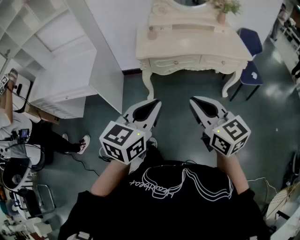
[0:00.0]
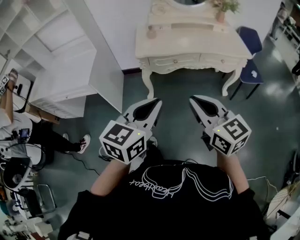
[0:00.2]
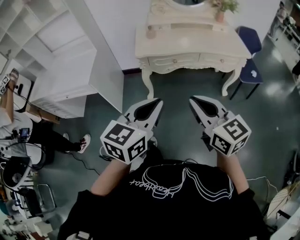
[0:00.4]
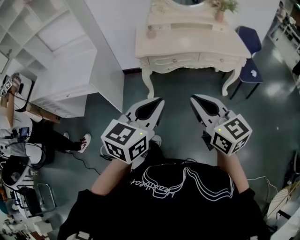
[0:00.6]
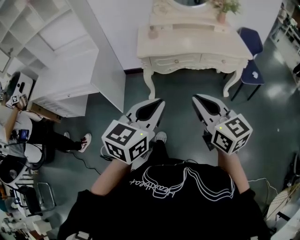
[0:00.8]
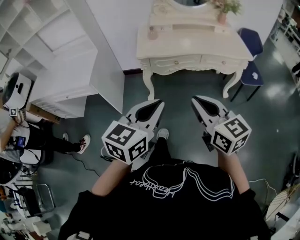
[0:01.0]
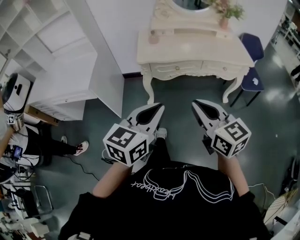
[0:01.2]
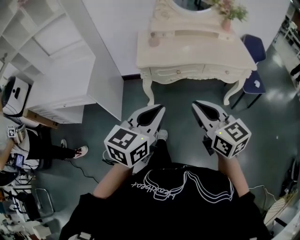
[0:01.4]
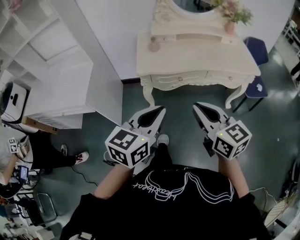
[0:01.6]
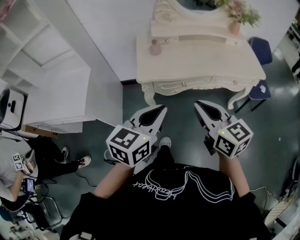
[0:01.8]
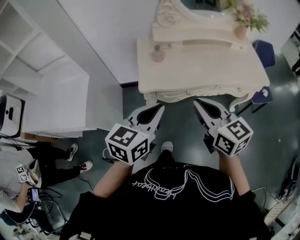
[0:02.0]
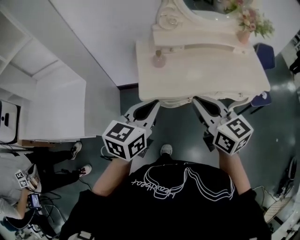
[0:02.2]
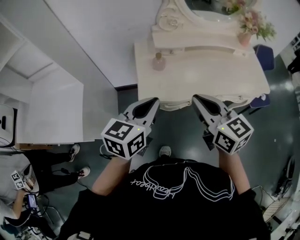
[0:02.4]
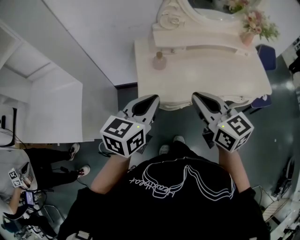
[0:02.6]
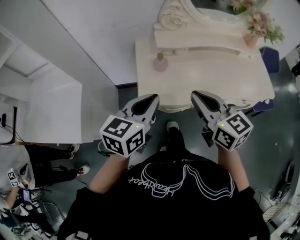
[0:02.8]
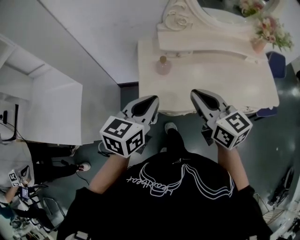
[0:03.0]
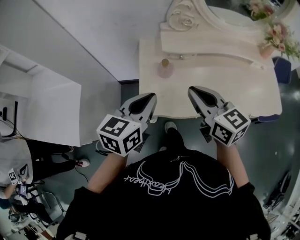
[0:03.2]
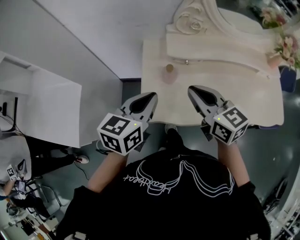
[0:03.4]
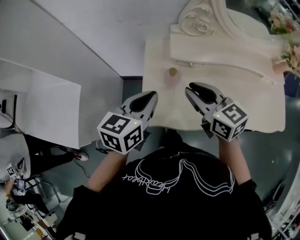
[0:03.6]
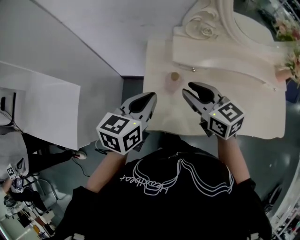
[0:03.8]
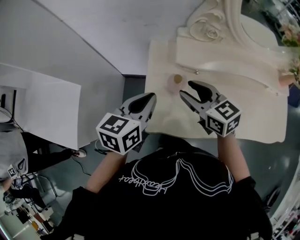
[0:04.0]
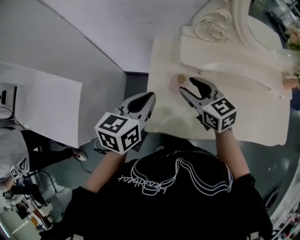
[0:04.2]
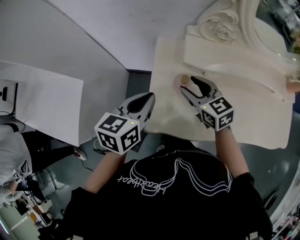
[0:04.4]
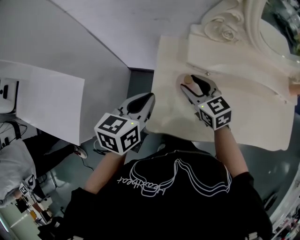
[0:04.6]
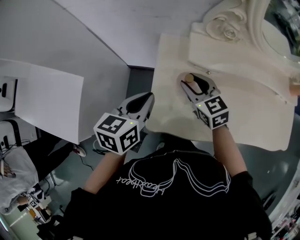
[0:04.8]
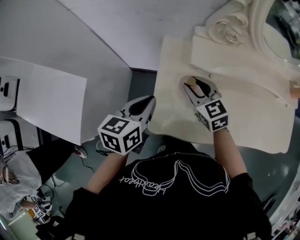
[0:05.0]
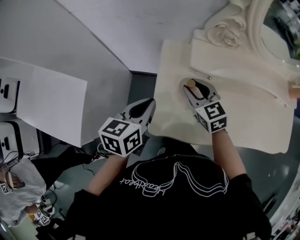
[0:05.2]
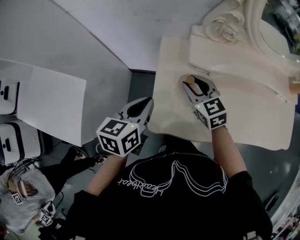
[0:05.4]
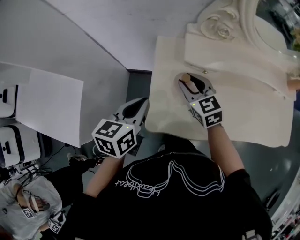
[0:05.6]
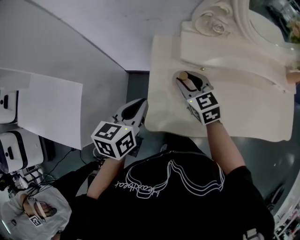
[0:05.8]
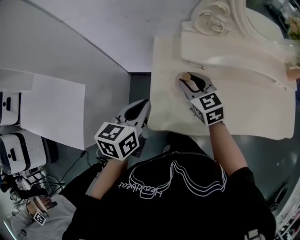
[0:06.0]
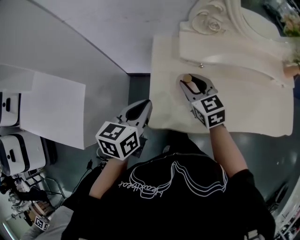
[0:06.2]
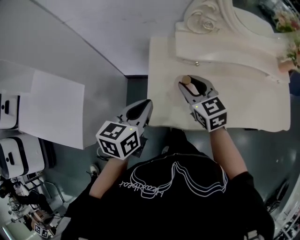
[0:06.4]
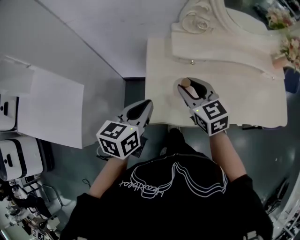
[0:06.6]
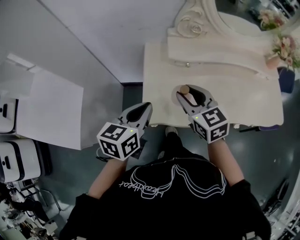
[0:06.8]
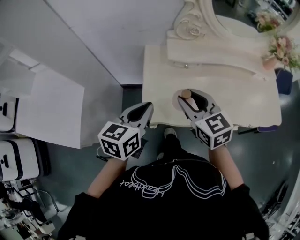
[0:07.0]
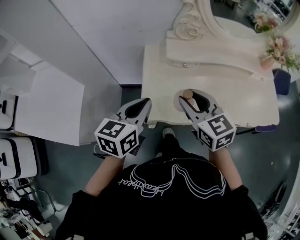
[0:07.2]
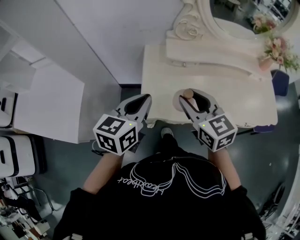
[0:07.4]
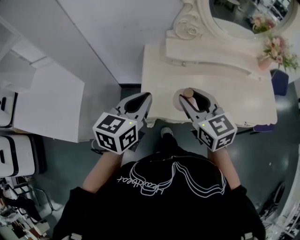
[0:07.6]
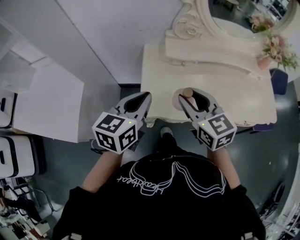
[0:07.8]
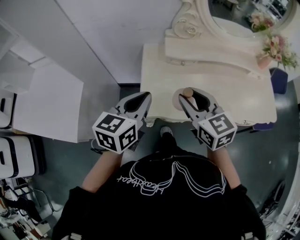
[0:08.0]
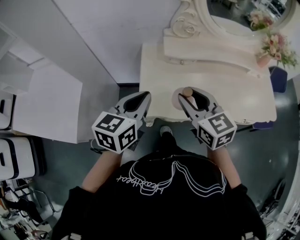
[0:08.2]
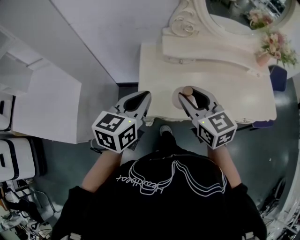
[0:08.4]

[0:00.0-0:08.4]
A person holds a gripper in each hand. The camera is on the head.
0:00.0 to 0:01.4: Both grippers move forward, some 10 cm.
0:01.4 to 0:02.8: Both grippers move forward, some 35 cm.
0:02.8 to 0:04.2: Both grippers move forward and downward, roughly 25 cm. The right gripper swivels approximately 20 degrees, and opens its fingers.
0:04.2 to 0:05.6: The right gripper changes place by approximately 5 cm.
0:05.6 to 0:07.0: The left gripper goes roughly 10 cm backward and upward, while the right gripper travels backward and upward by approximately 20 cm.
0:07.0 to 0:08.4: The grippers make only small movements.

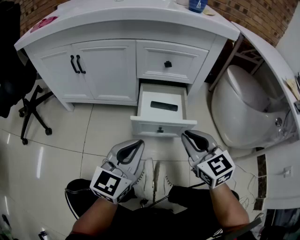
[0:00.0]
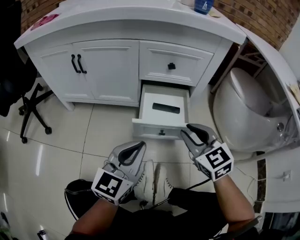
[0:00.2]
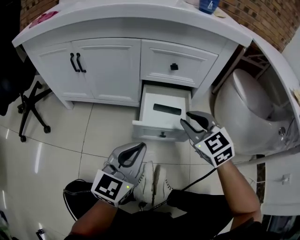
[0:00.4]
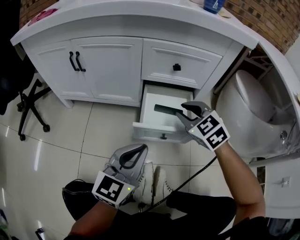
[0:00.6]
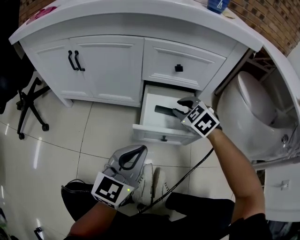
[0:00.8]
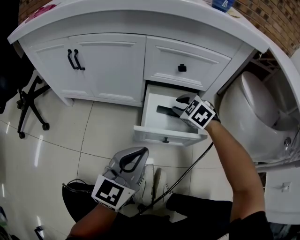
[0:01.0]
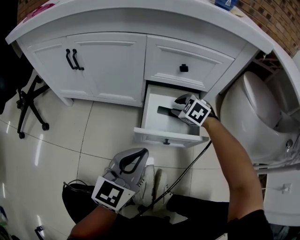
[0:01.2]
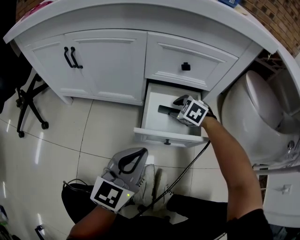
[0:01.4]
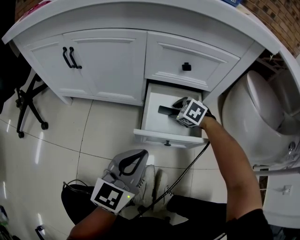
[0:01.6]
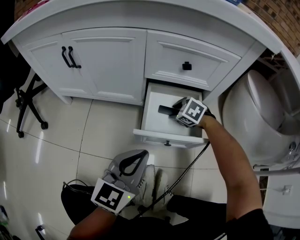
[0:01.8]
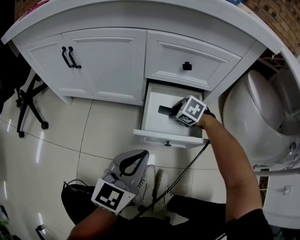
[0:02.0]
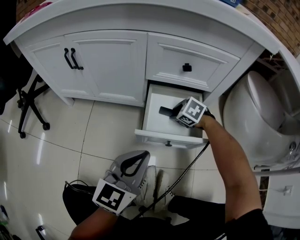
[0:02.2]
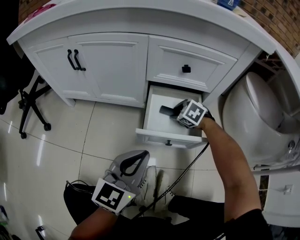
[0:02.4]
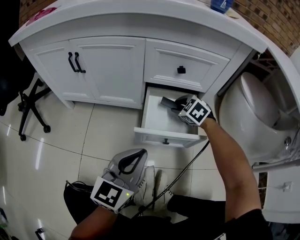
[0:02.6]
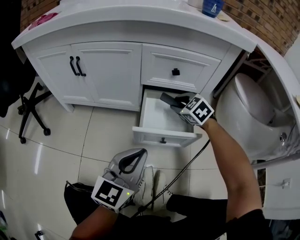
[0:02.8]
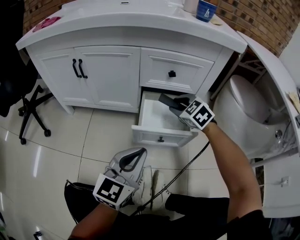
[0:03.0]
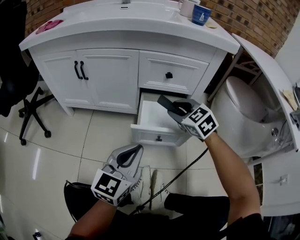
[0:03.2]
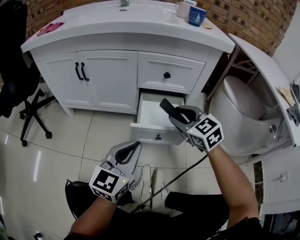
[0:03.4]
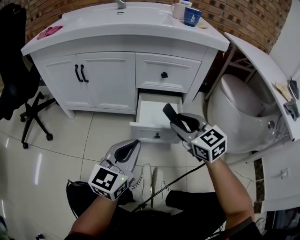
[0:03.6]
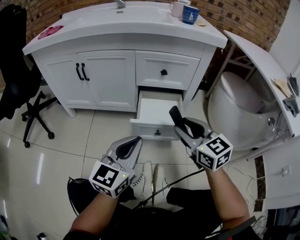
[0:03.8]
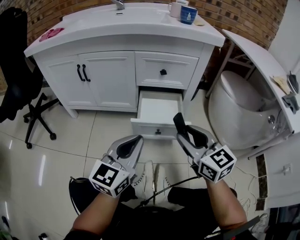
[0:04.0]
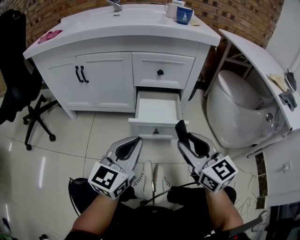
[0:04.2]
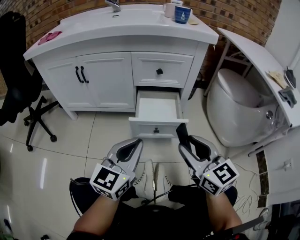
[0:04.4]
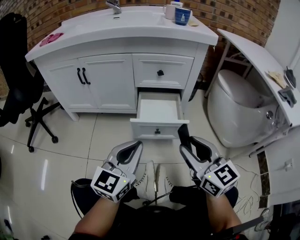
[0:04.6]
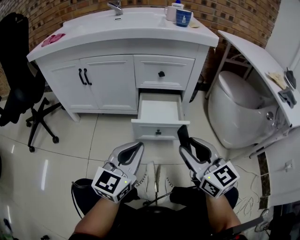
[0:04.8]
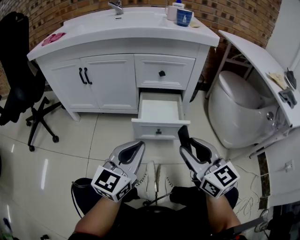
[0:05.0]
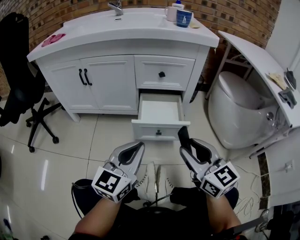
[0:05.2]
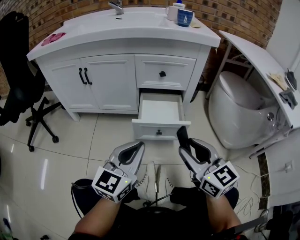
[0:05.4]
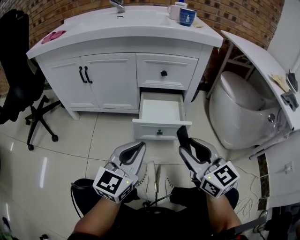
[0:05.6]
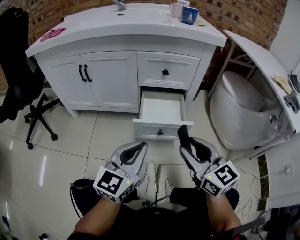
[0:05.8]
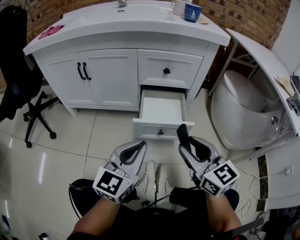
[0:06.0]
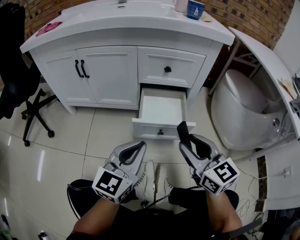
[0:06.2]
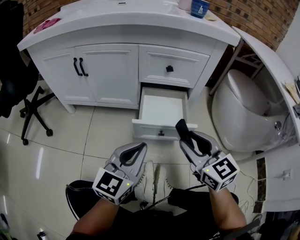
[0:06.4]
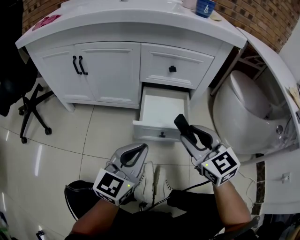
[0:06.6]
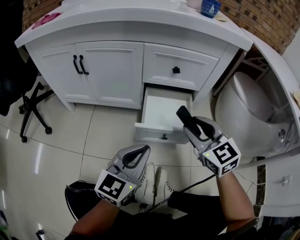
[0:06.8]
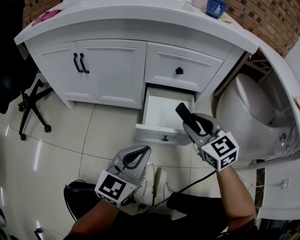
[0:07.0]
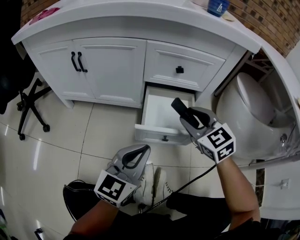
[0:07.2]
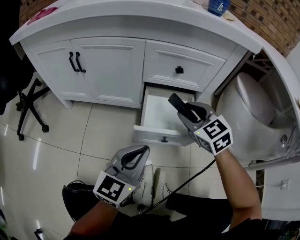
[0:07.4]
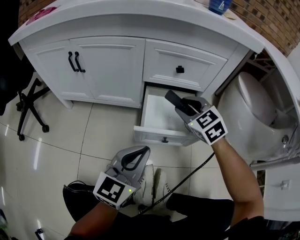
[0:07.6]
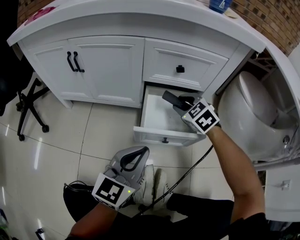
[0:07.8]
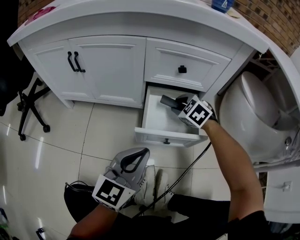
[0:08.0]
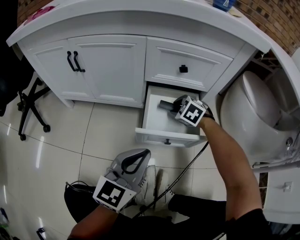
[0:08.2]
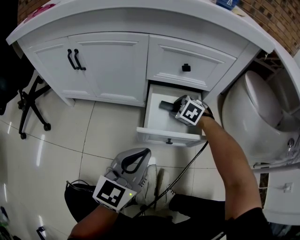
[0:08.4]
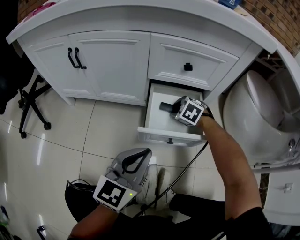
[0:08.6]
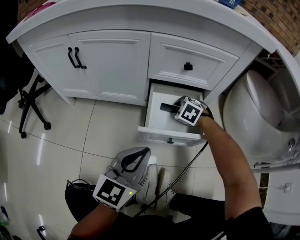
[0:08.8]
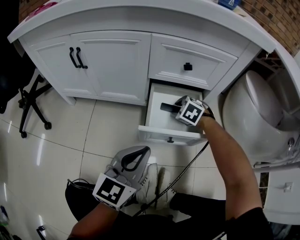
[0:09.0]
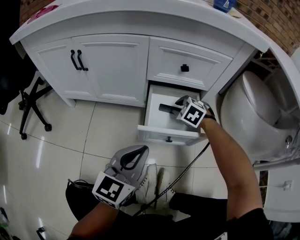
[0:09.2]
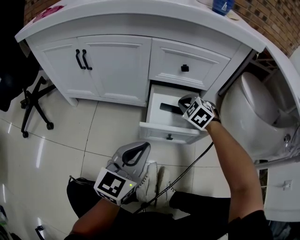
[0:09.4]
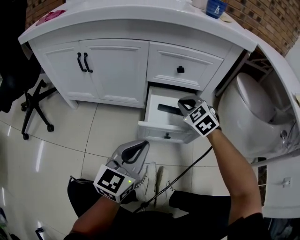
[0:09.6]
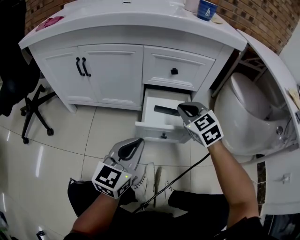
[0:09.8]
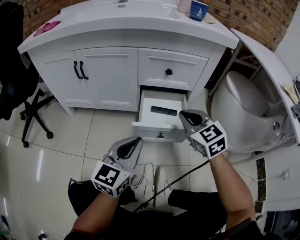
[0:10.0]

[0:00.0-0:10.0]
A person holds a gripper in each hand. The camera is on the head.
0:00.0 to 0:01.4: The left gripper travels forward by roughly 5 cm. The right gripper is displaced forward and downward by about 30 cm, angles its fingers downward, by approximately 40 degrees, and opens its fingers.
0:01.4 to 0:02.8: The right gripper heads upward, covering about 10 cm.
0:02.8 to 0:04.2: The left gripper travels backward by some 5 cm. The right gripper moves backward and upward, about 35 cm, and tilts its fingers some 40 degrees upward.
0:04.2 to 0:05.8: The grippers move only a little.
0:05.8 to 0:07.2: The left gripper moves forward, some 5 cm; the right gripper travels forward by some 20 cm, and changes its angle by some 30 degrees.
0:07.2 to 0:08.6: The right gripper moves downward and forward, some 25 cm, and tilts its fingers roughly 40 degrees downward.
0:08.6 to 0:10.0: The right gripper moves upward and backward, about 25 cm, tips its fingers upward by roughly 40 degrees, and closes.

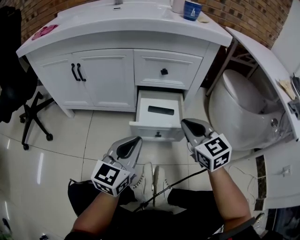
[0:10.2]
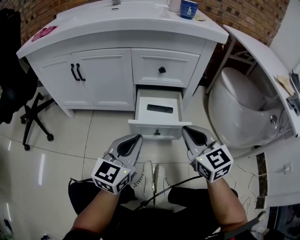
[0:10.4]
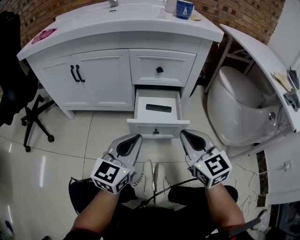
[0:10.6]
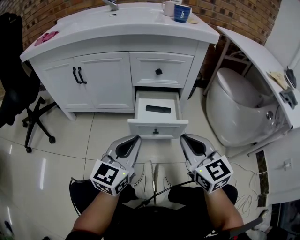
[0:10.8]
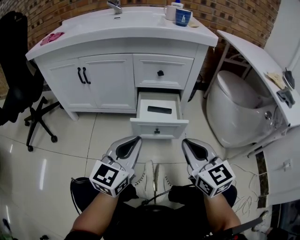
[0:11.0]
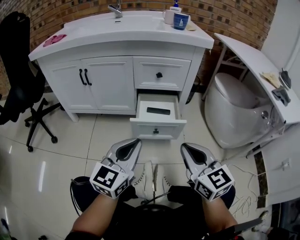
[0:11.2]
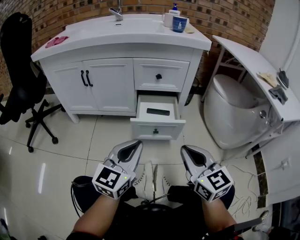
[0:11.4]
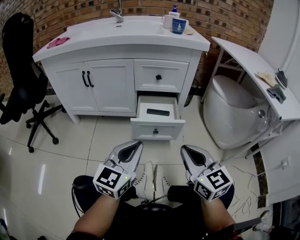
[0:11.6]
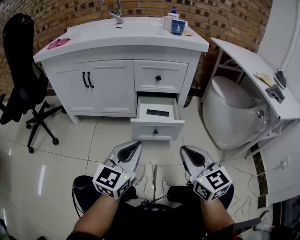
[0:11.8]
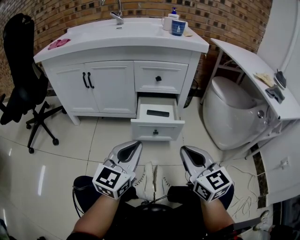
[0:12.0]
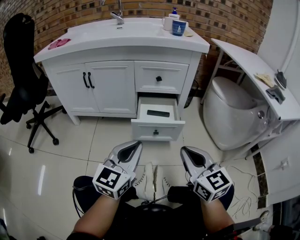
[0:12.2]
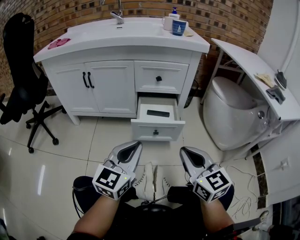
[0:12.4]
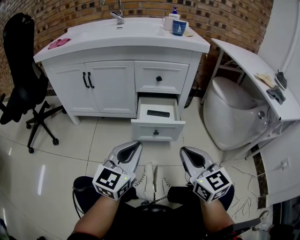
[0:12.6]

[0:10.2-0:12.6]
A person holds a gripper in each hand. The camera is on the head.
0:10.2 to 0:11.4: The right gripper goes approximately 15 cm backward. Meanwhile the left gripper moves backward, about 10 cm.
0:11.4 to 0:12.6: The two grippers keep their place.

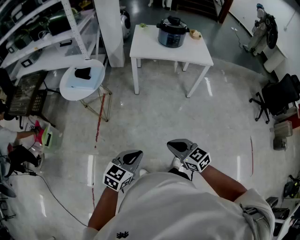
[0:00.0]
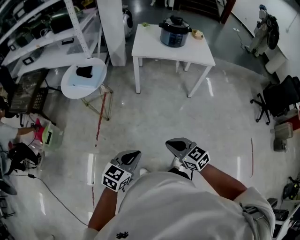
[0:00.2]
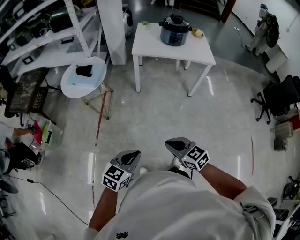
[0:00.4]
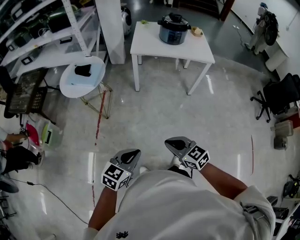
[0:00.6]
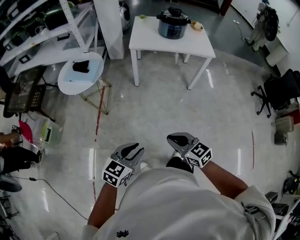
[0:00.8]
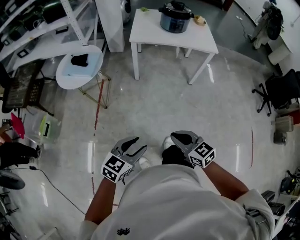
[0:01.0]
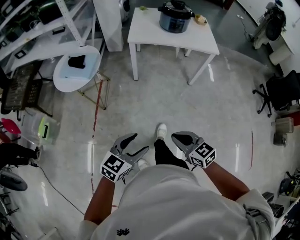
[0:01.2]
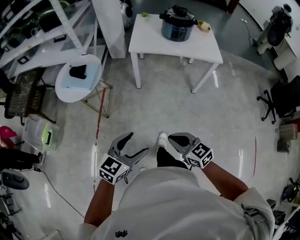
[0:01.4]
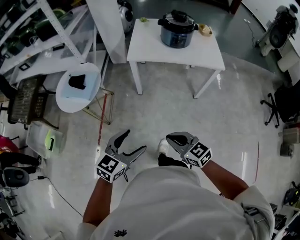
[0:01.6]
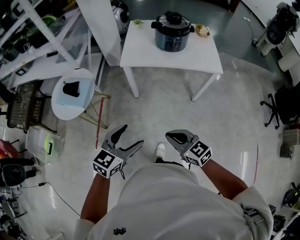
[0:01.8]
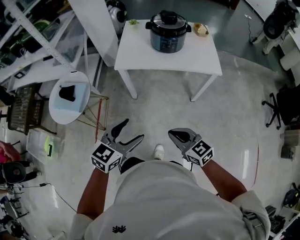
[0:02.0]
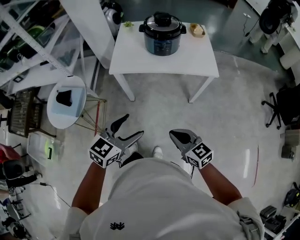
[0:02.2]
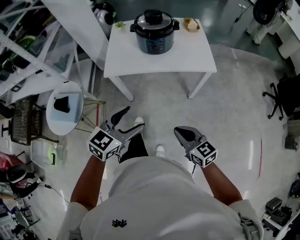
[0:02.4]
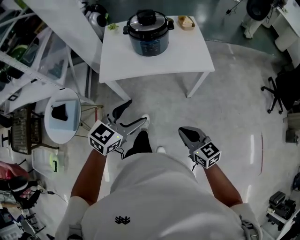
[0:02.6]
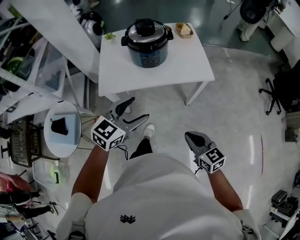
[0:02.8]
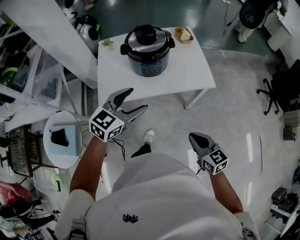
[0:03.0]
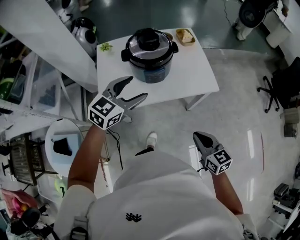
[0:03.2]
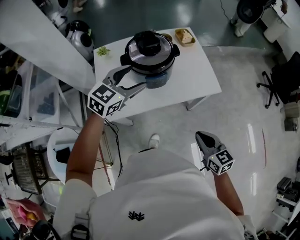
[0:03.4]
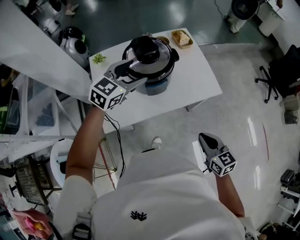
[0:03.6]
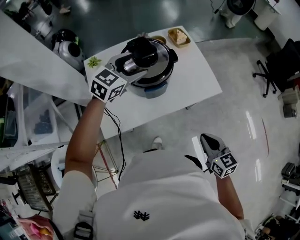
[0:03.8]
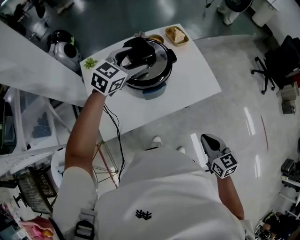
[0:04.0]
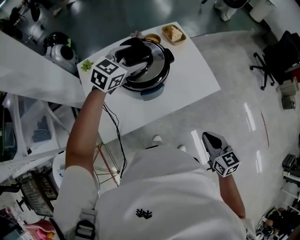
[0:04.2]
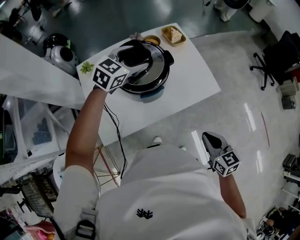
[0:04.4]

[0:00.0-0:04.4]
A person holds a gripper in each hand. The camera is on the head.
0:00.0 to 0:01.4: The two grippers go about 15 cm forward. The left gripper opens.
0:01.4 to 0:03.0: The two grippers travel together, forward, approximately 50 cm. The left gripper swivels roughly 20 degrees. The right gripper changes its angle by approximately 30 degrees.
0:03.0 to 0:04.4: The right gripper moves forward, approximately 15 cm, and swivels about 20 degrees. Meanwhile the left gripper shifts approximately 35 cm forward.
